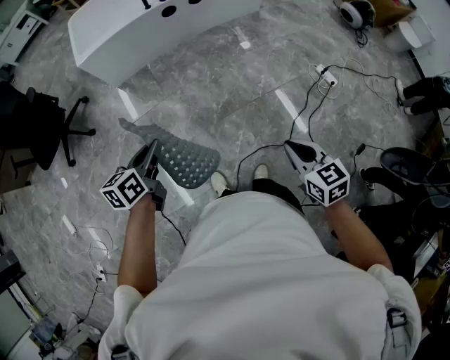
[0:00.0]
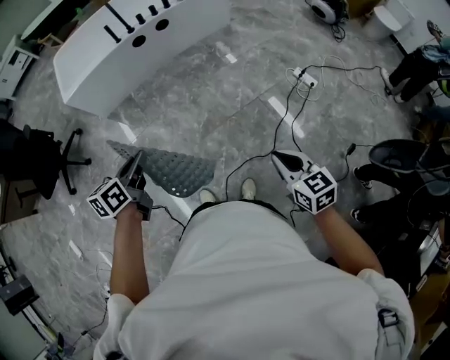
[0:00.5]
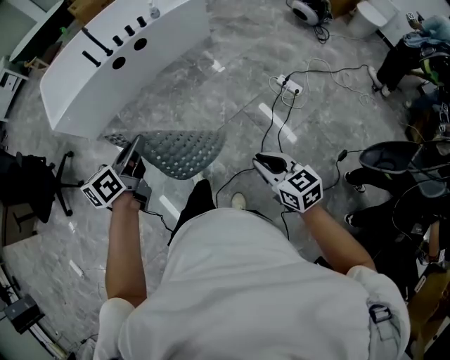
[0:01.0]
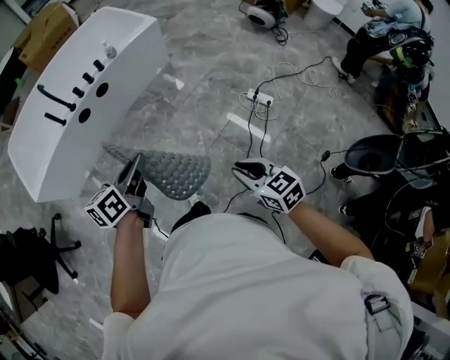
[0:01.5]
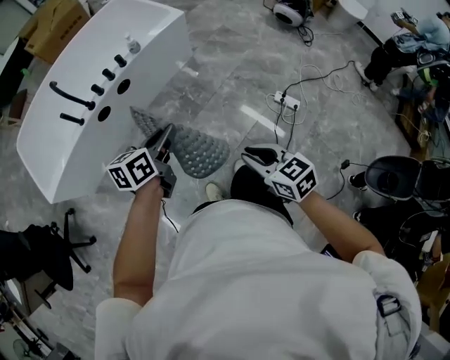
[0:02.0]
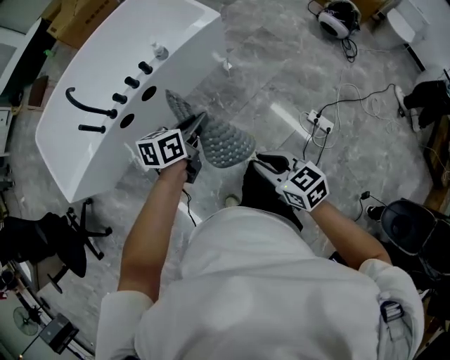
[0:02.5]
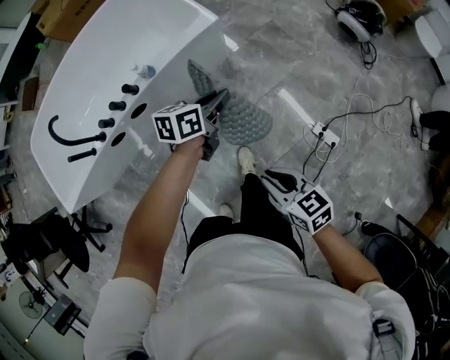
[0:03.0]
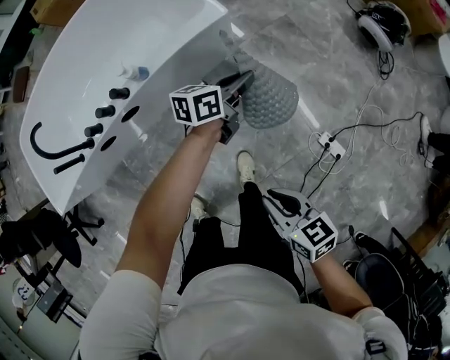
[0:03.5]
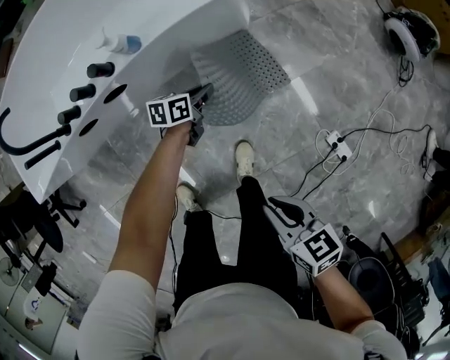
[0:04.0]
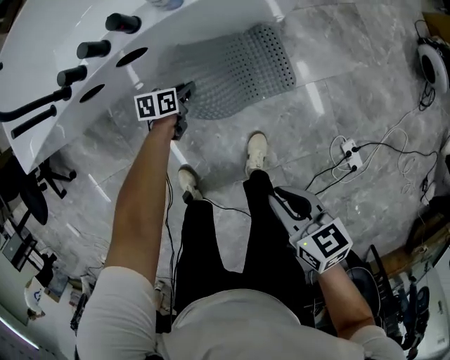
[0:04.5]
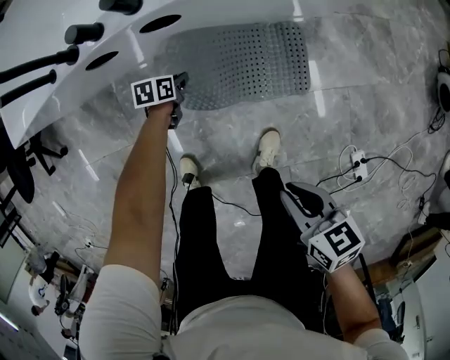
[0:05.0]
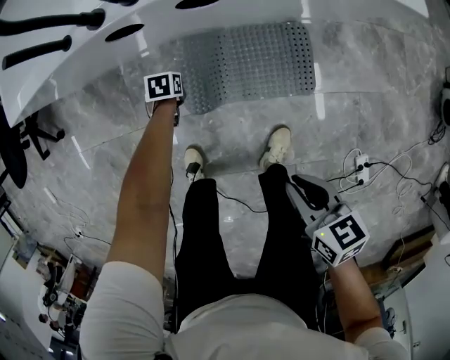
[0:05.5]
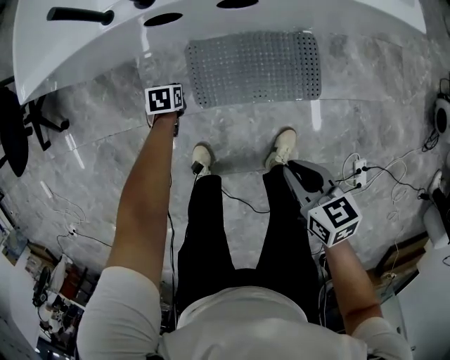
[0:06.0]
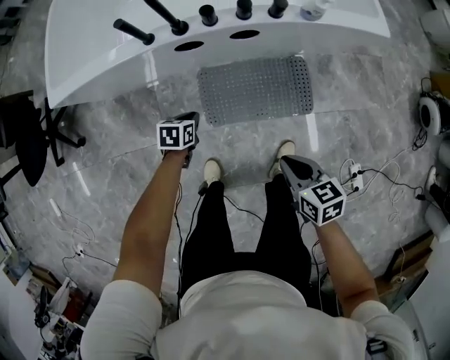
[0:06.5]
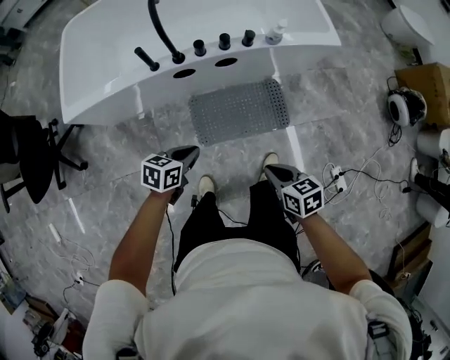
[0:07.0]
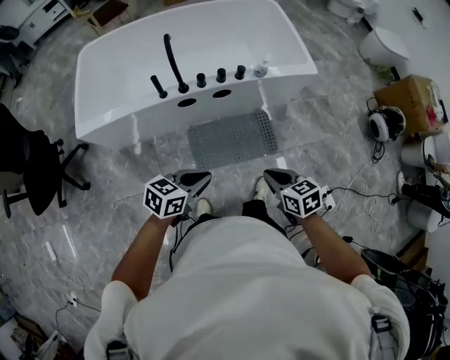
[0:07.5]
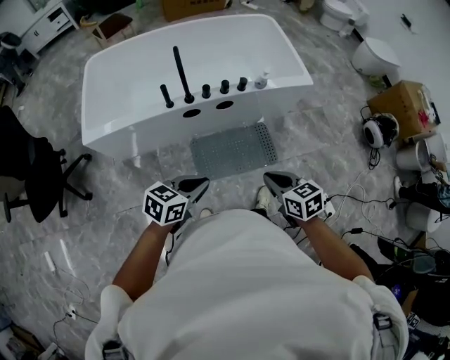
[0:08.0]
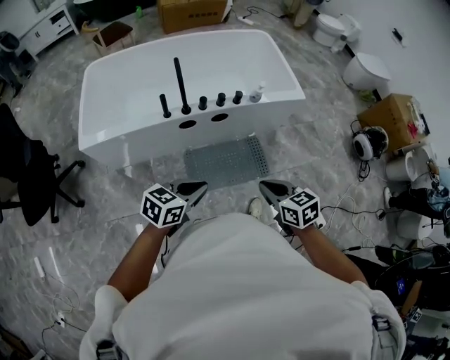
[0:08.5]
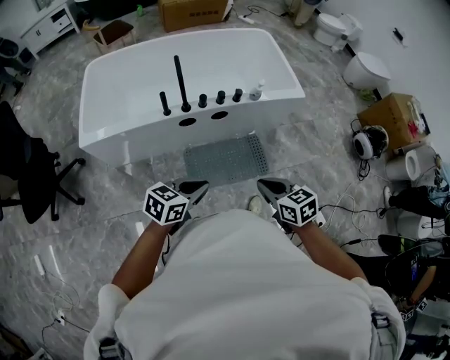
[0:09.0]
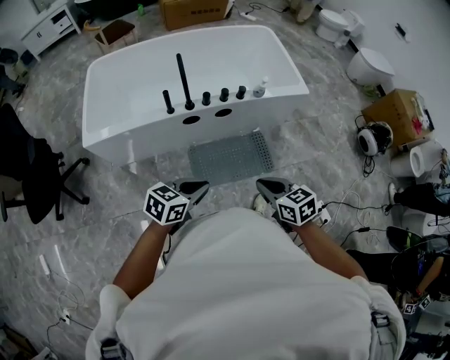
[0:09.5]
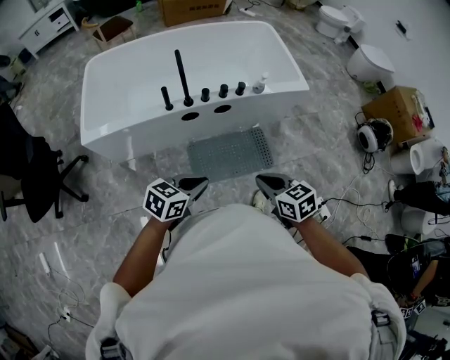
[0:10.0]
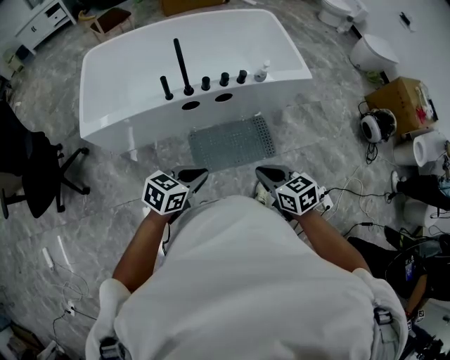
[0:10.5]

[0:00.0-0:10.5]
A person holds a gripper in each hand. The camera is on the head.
0.0 to 2.0 s: The right gripper travels forward by roughly 35 cm. Meanwhile the left gripper shifts some 60 cm forward and to the right, and swivels about 30 degrees.
2.0 to 4.0 s: The right gripper is displaced forward and downward by approximately 40 cm, and swivels roughly 30 degrees, while the left gripper moves forward and downward, approximately 70 cm, and changes its angle by about 20 degrees.
4.0 to 6.5 s: The right gripper reaches some 10 cm downward, then returns. Meanwhile the left gripper goes downward and returns, approximately 20 cm each way, and turns by roughly 30 degrees.
6.5 to 8.5 s: The left gripper goes some 50 cm upward and backward, and tips its fingers upward by about 30 degrees. Meanwhile the right gripper shifts some 25 cm upward.
8.5 to 10.5 s: The grippers move only a little.

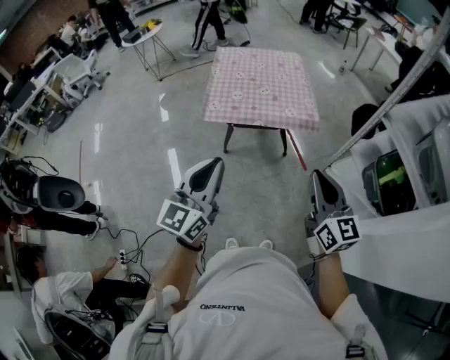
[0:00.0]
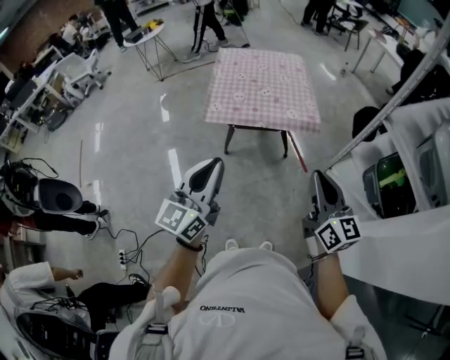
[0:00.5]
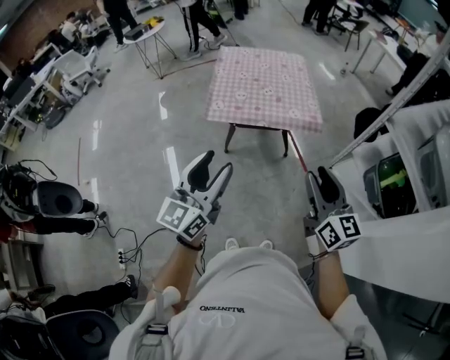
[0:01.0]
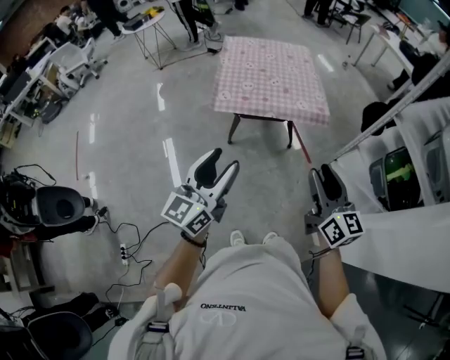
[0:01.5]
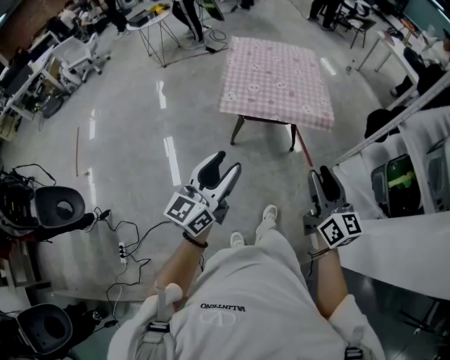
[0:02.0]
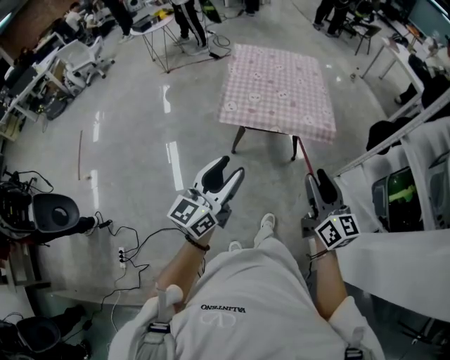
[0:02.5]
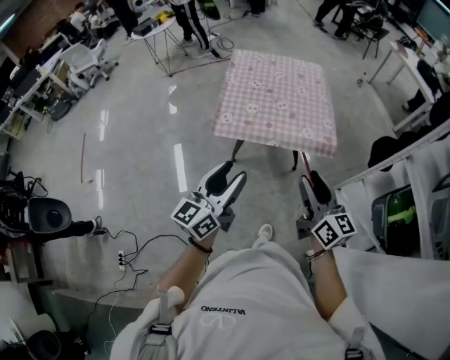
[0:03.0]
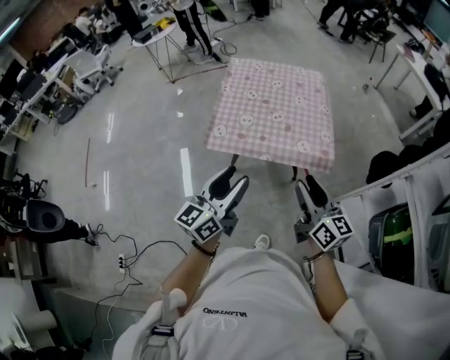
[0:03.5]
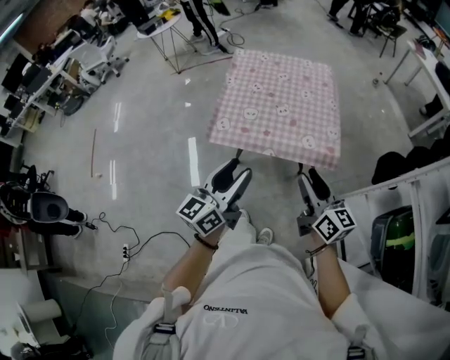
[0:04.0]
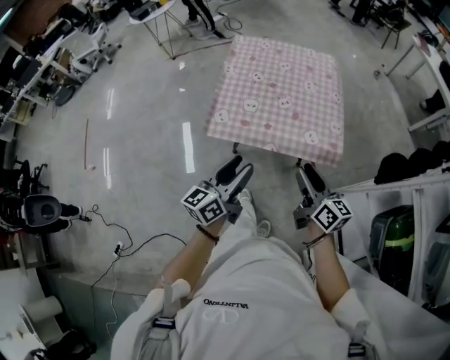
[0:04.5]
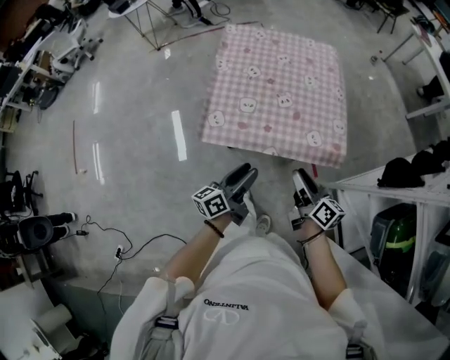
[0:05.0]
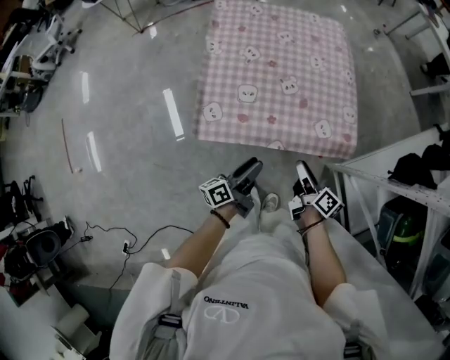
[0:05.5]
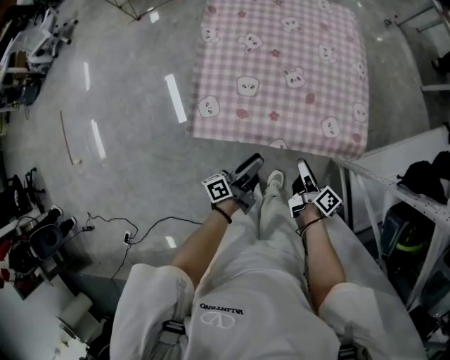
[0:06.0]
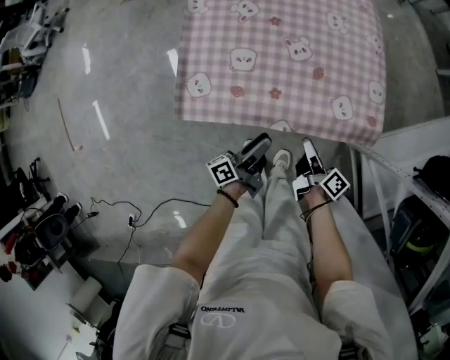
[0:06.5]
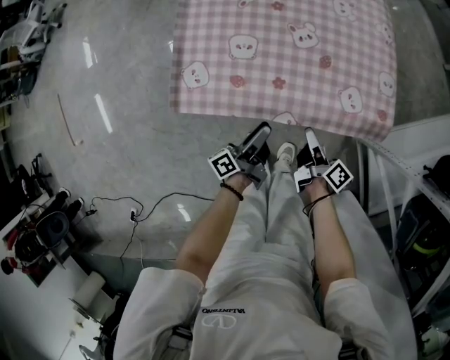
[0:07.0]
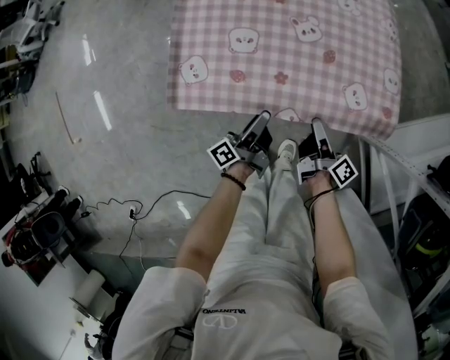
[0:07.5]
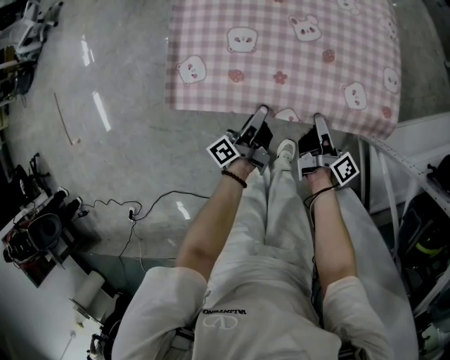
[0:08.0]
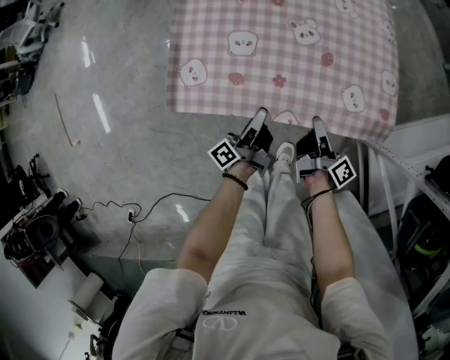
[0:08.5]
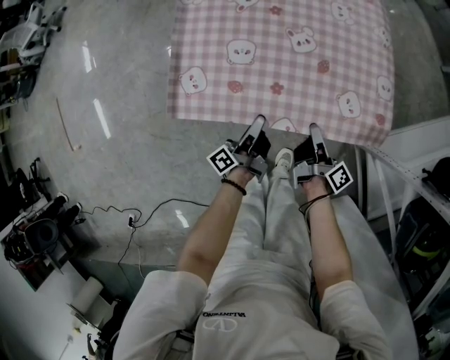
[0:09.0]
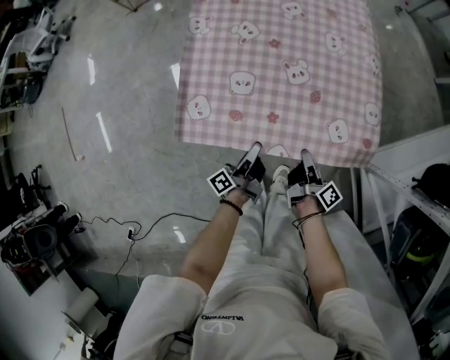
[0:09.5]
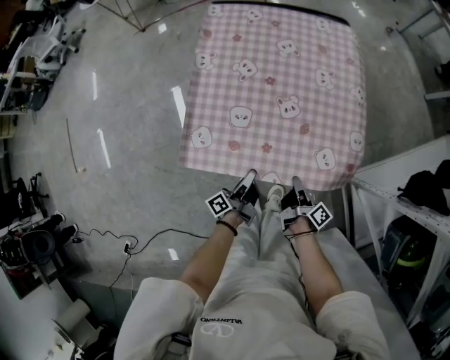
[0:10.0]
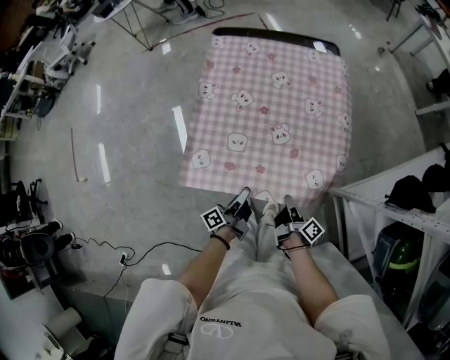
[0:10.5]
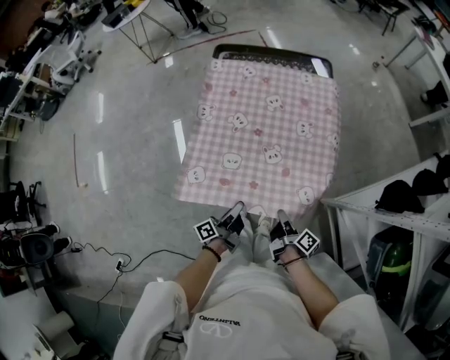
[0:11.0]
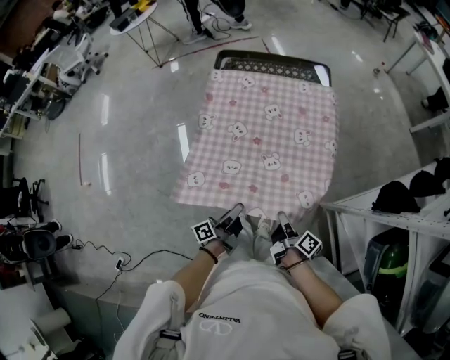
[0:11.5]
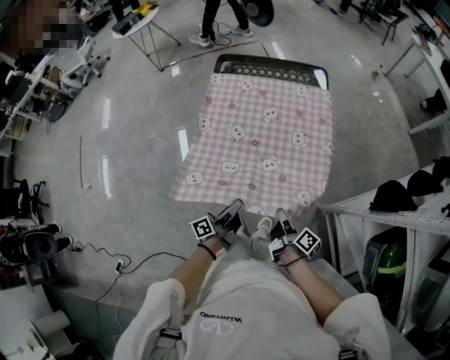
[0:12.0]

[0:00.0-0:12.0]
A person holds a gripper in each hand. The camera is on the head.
0.0 to 2.0 s: The right gripper shifts some 10 cm to the left, and opens up, while the left gripper heads to the left and downward, covering some 10 cm, and opens.
2.0 to 4.0 s: The left gripper is displaced forward and to the right by roughly 25 cm; the right gripper is displaced forward by roughly 25 cm.
4.0 to 6.0 s: The grippers both shift downward and forward by some 40 cm. The left gripper rotates around the line of its fingers by about 60 degrees, counterclockwise from behind. Meanwhile the right gripper rotates around the line of its fingers by about 50 degrees, clockwise from behind.
6.0 to 8.0 s: The left gripper moves downward and forward, approximately 10 cm, and closes its fingers. Meanwhile the right gripper is displaced downward by about 10 cm, and closes its fingers.
8.0 to 10.0 s: The right gripper closes up.
10.0 to 12.0 s: Both grippers travel together upward, roughly 15 cm.

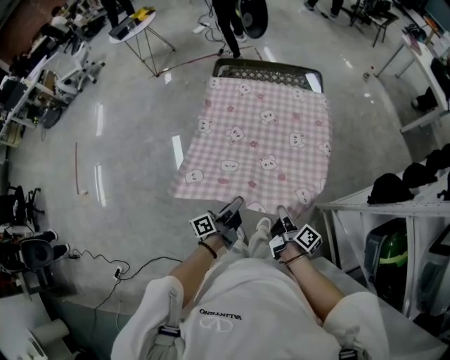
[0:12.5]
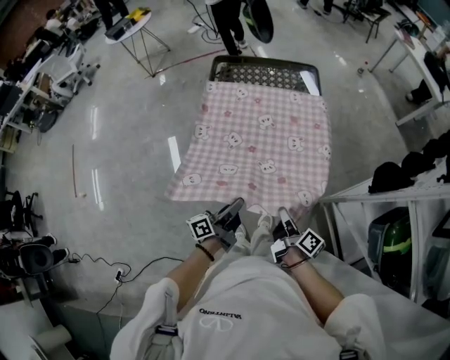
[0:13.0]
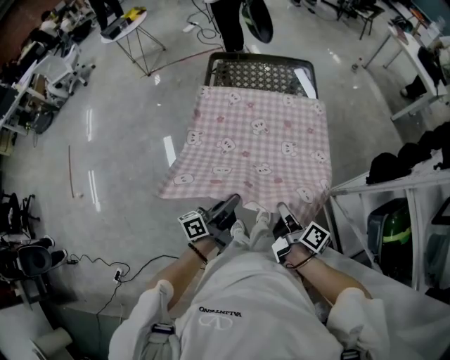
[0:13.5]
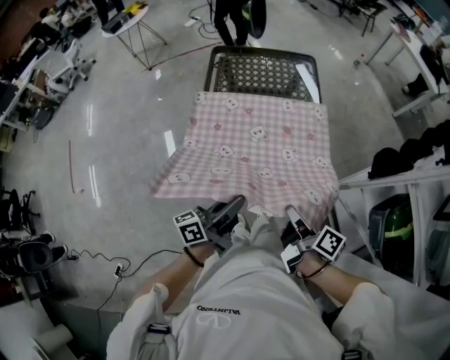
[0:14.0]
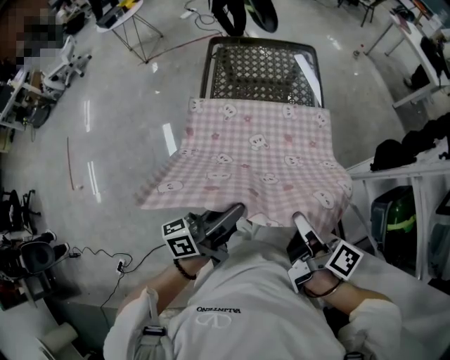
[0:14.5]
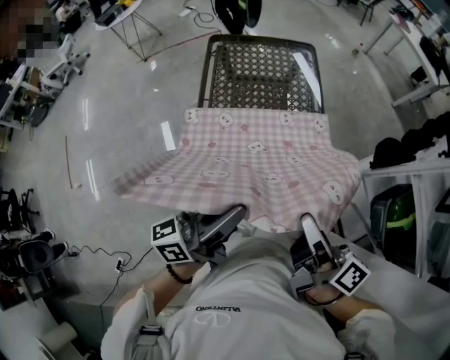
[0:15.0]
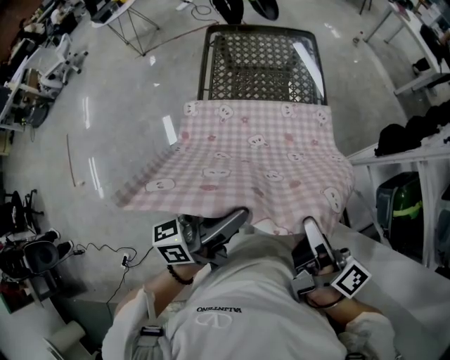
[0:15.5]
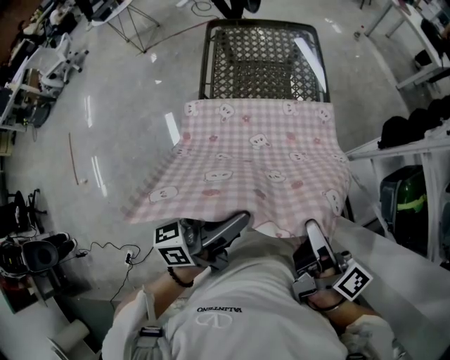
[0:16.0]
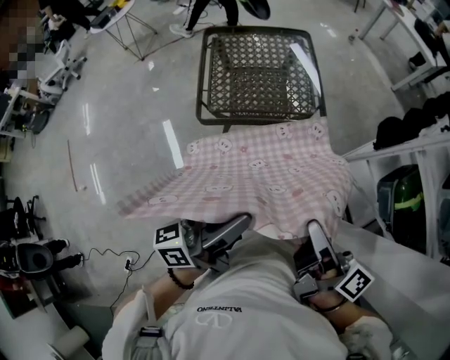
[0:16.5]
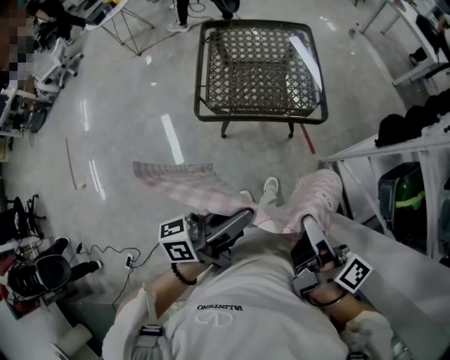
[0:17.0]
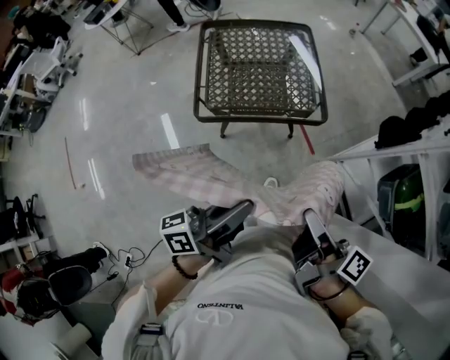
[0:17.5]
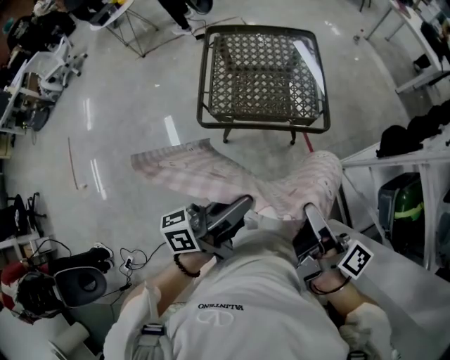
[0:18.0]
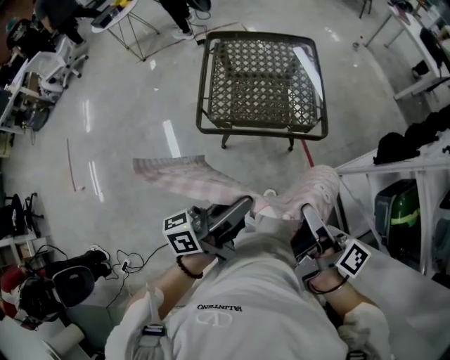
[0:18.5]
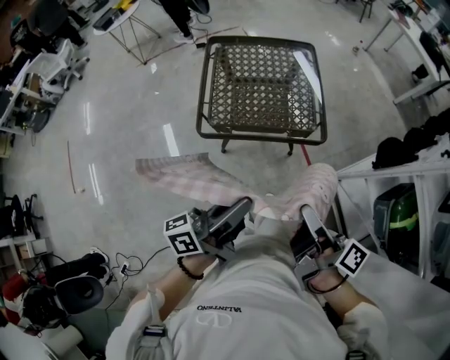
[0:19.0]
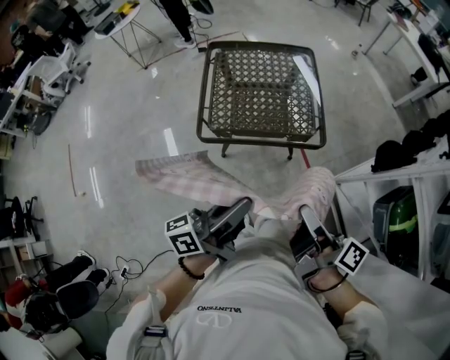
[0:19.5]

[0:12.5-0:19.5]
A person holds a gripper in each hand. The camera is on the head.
12.5 to 14.5 s: The grippers both shift upward and backward by about 25 cm. The left gripper changes its angle by some 30 degrees.
14.5 to 16.0 s: The right gripper heads backward, covering some 5 cm. Meanwhile the left gripper travels backward and upward by approximately 10 cm.
16.0 to 17.5 s: The grippers make only small movements.
17.5 to 19.5 s: The grippers both shift forward by roughly 5 cm.
